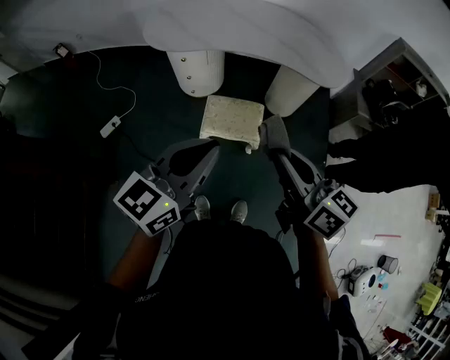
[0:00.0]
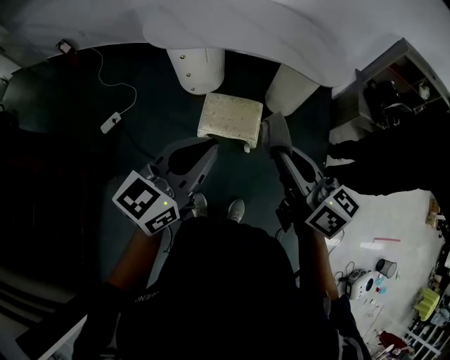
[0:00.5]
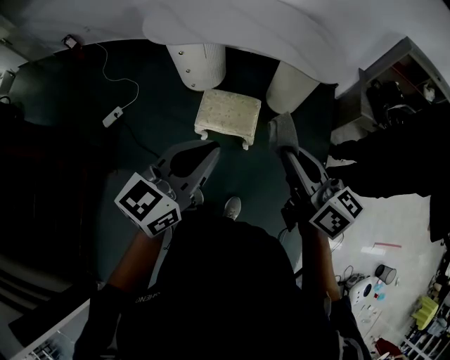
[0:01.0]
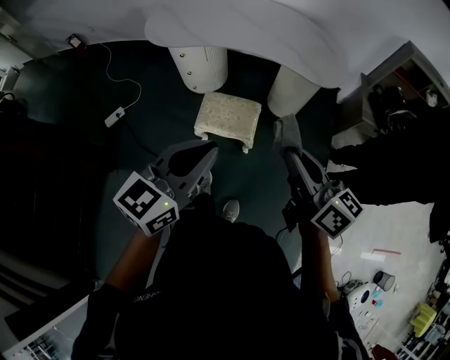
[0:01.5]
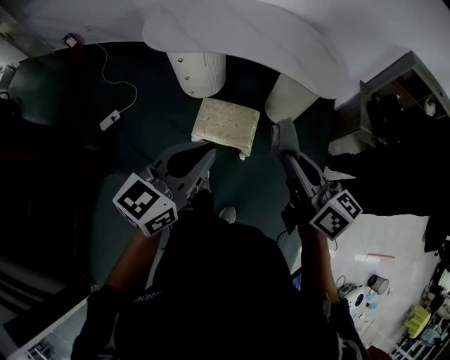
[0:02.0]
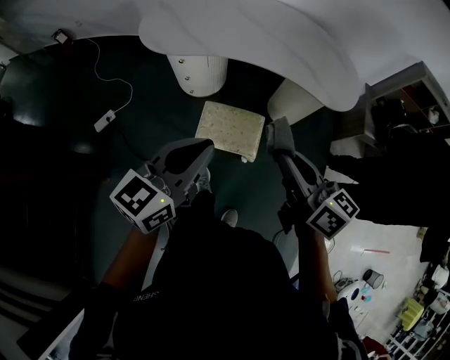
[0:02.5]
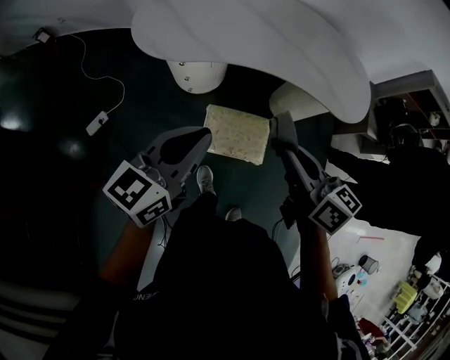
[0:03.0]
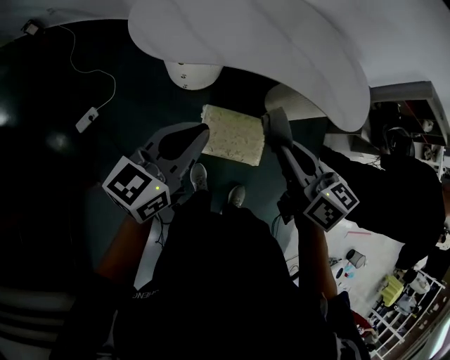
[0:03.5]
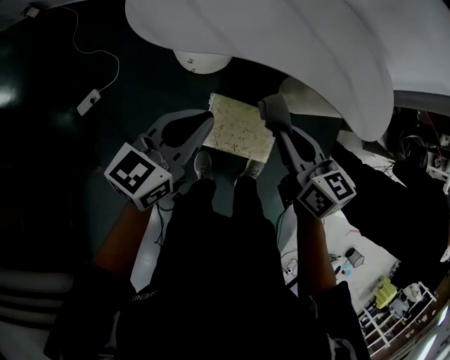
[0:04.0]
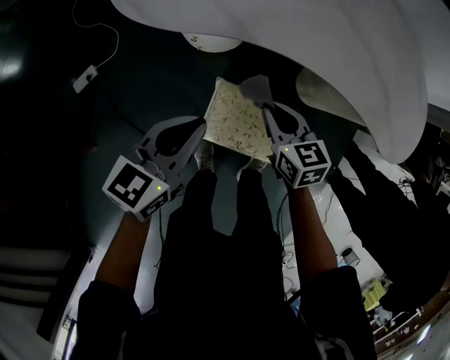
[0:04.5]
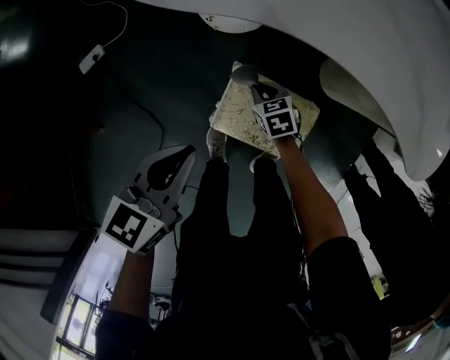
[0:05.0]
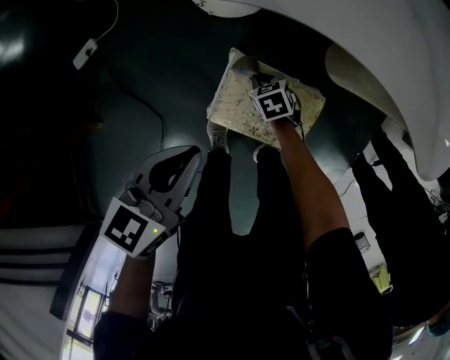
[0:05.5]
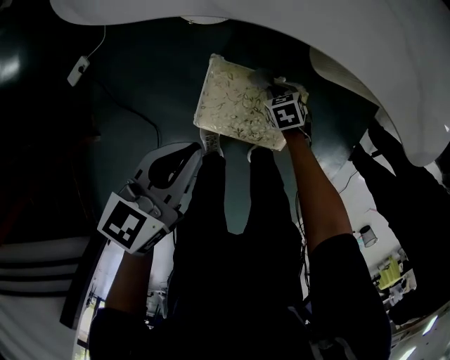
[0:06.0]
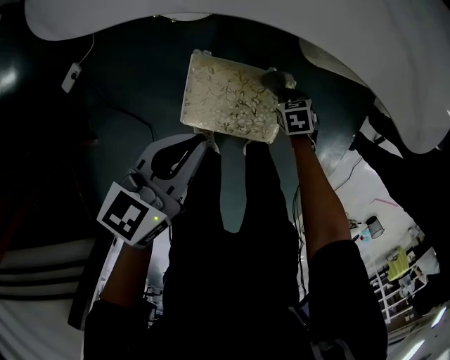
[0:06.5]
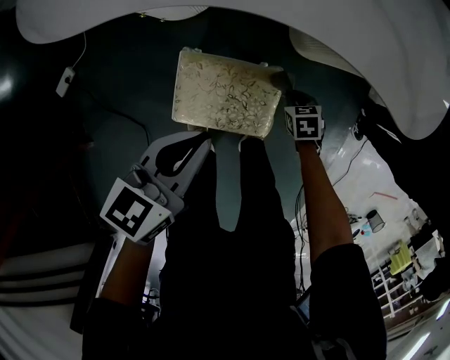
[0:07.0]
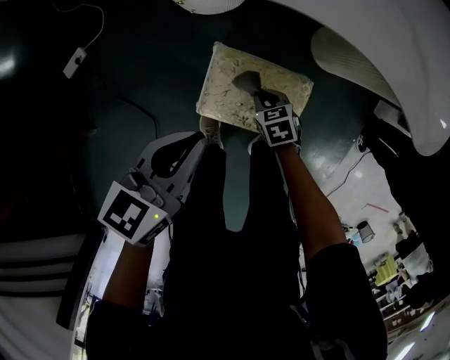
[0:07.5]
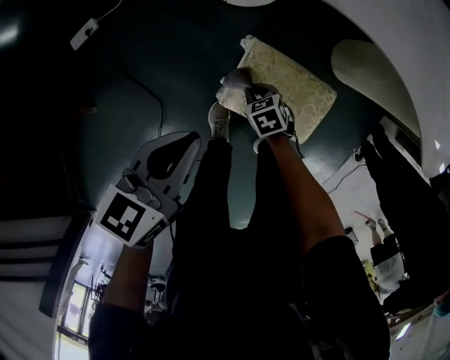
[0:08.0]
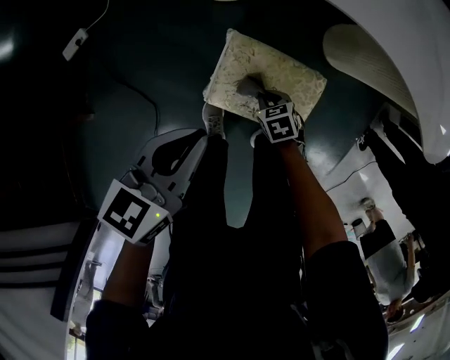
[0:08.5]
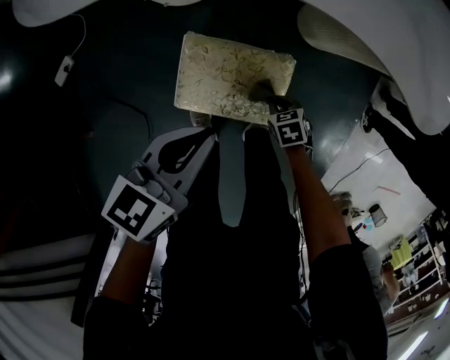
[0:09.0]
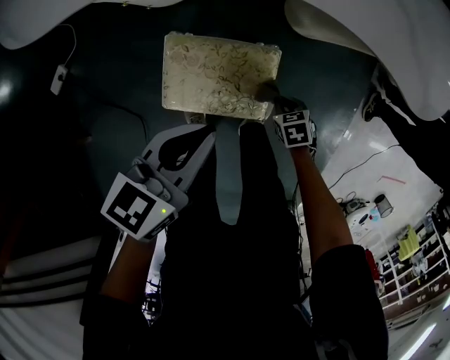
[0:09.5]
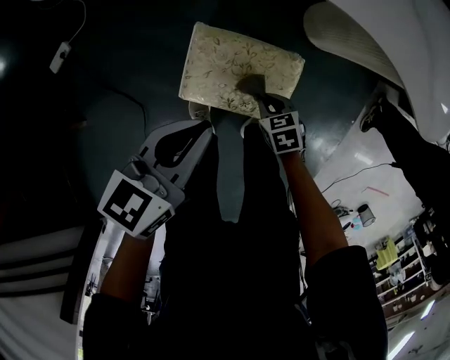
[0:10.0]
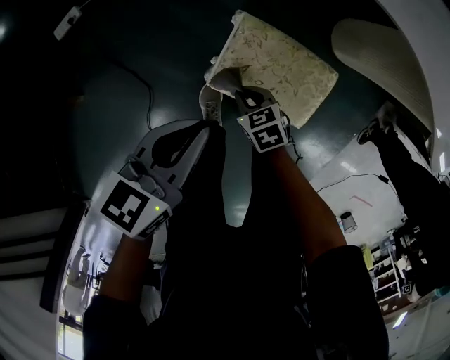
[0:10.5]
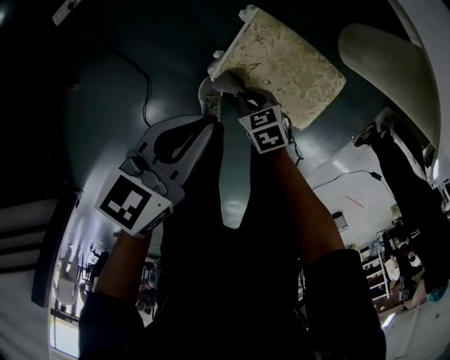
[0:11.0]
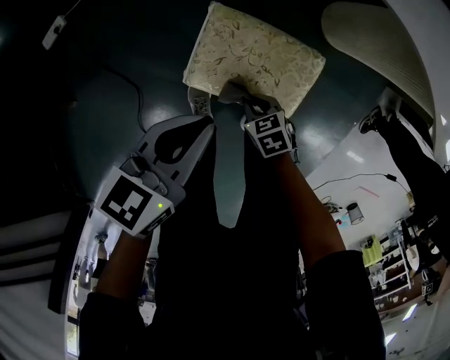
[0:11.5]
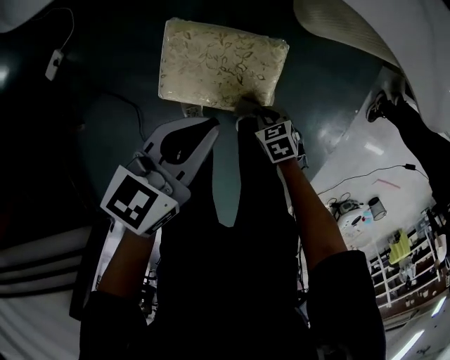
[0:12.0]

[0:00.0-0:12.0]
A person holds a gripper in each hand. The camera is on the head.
0:00.0 to 0:02.0: The two grippers go some 10 cm to the right.
0:02.0 to 0:04.0: The grippers both shift forward, to the left and downward by approximately 40 cm. The right gripper turns by some 20 degrees.
0:04.0 to 0:06.0: The left gripper moves downward, about 20 cm, and rotates about 20 degrees; the right gripper shifts roughly 50 cm downward, and tilts its fingers about 50 degrees downward.
0:06.0 to 0:08.0: The right gripper shifts by some 20 cm, while the left gripper shifts by some 15 cm.
0:08.0 to 0:10.0: Both grippers travel together to the right, some 15 cm.
0:10.0 to 0:12.0: The left gripper shifts by roughly 10 cm.

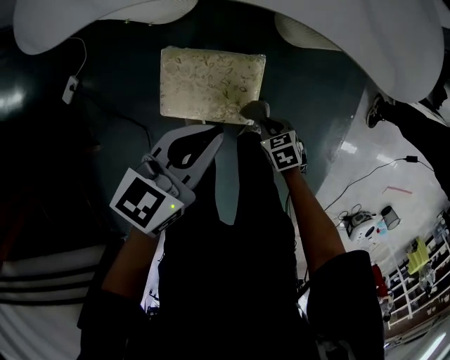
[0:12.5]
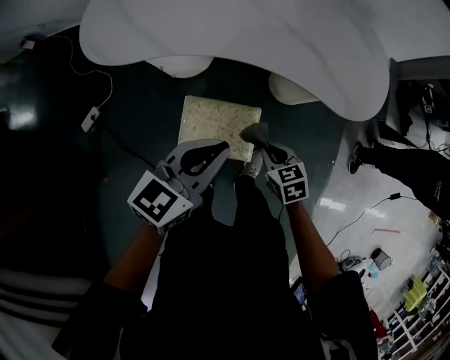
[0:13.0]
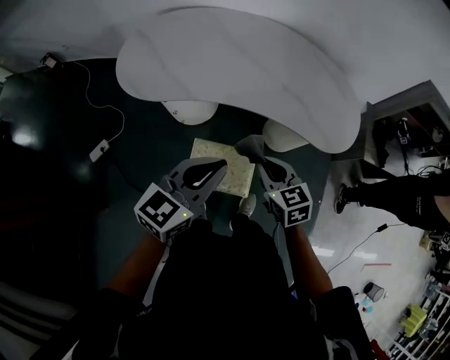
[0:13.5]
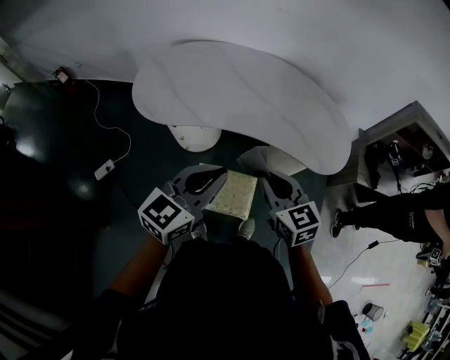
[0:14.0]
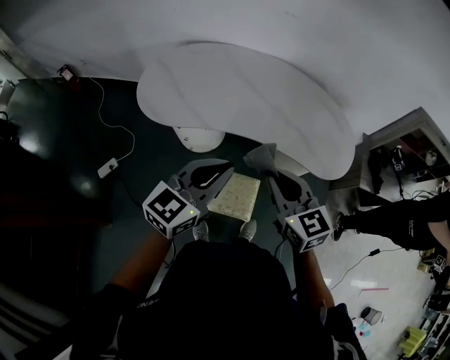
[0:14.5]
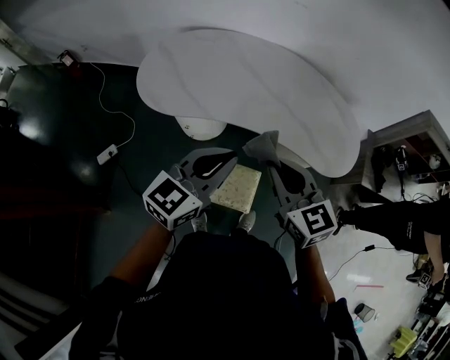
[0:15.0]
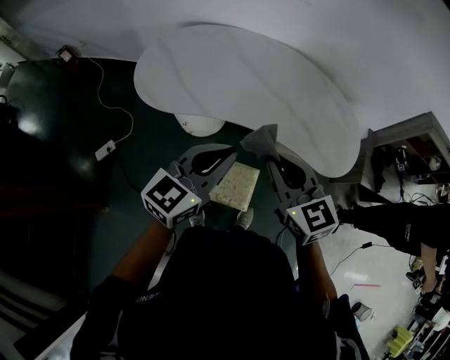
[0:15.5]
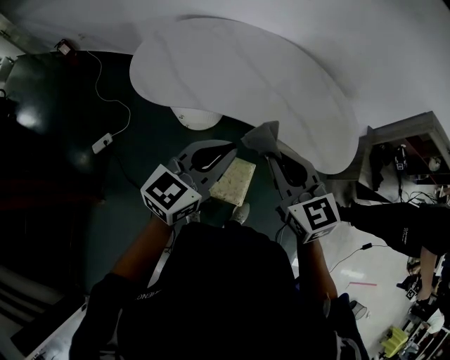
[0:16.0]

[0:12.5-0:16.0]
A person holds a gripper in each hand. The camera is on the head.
0:12.5 to 0:14.5: The right gripper moves upward, approximately 60 cm, and tips its fingers upward by roughly 50 degrees. The left gripper is displaced upward by roughly 30 cm, and changes its angle by roughly 30 degrees.
0:14.5 to 0:16.0: There are only small adjustments of the grippers.

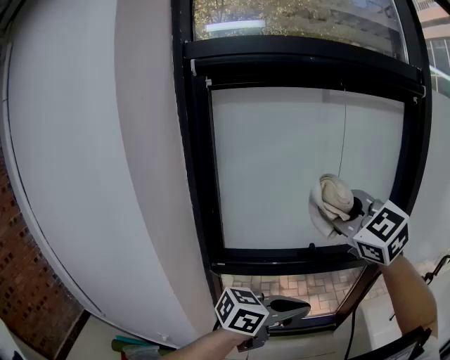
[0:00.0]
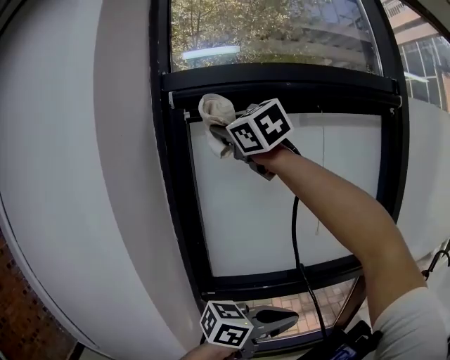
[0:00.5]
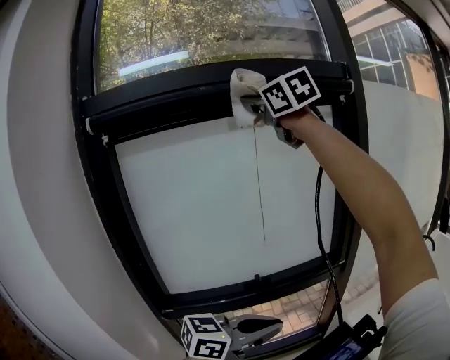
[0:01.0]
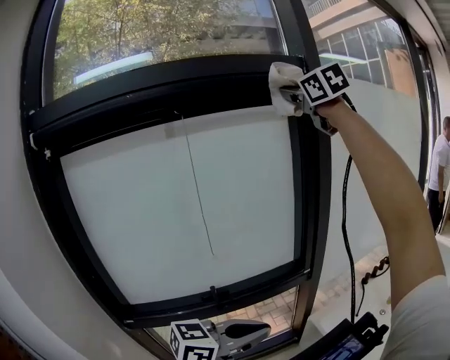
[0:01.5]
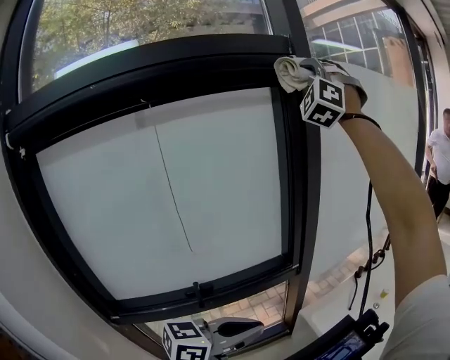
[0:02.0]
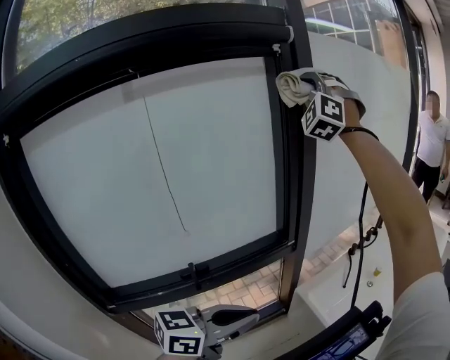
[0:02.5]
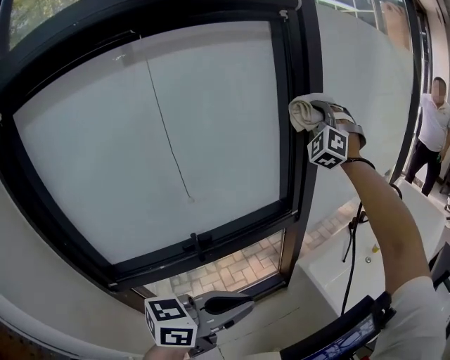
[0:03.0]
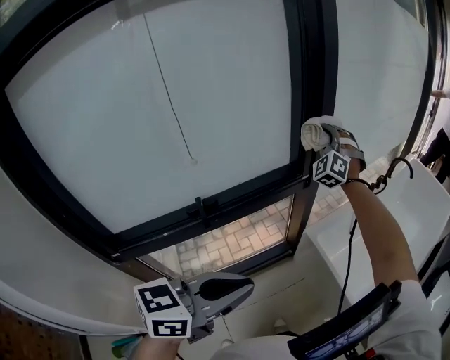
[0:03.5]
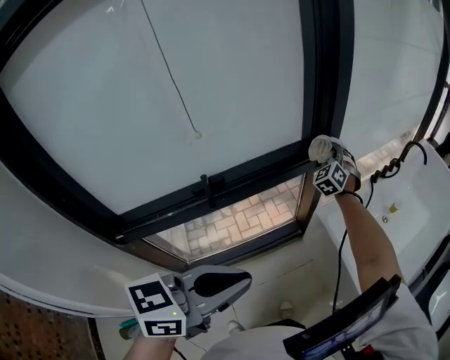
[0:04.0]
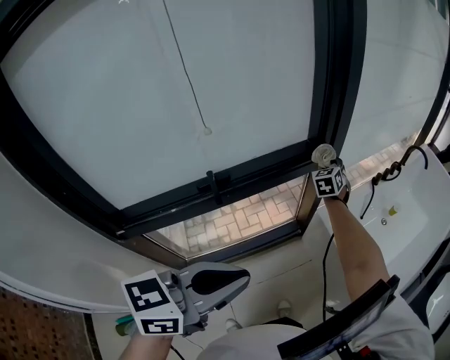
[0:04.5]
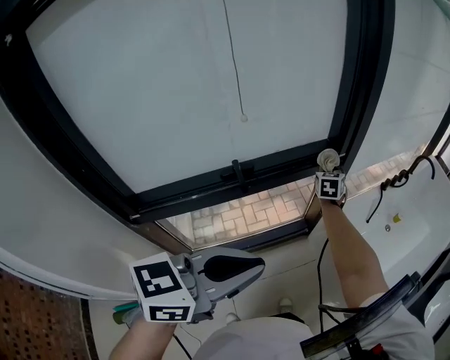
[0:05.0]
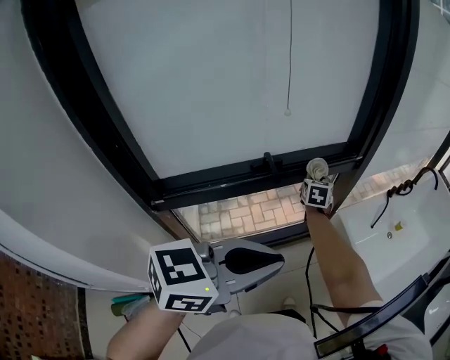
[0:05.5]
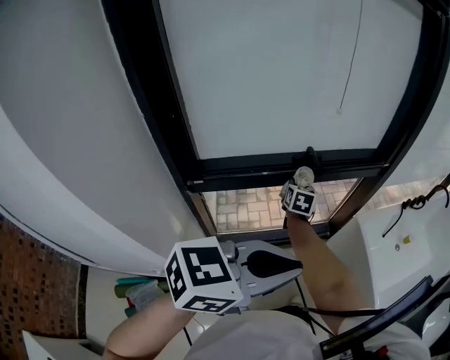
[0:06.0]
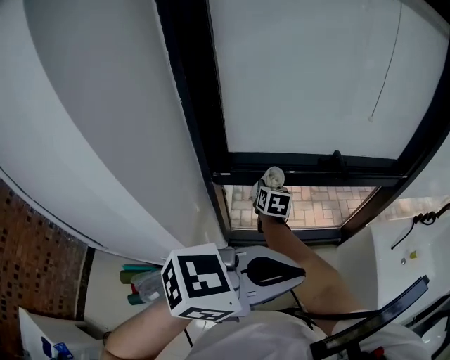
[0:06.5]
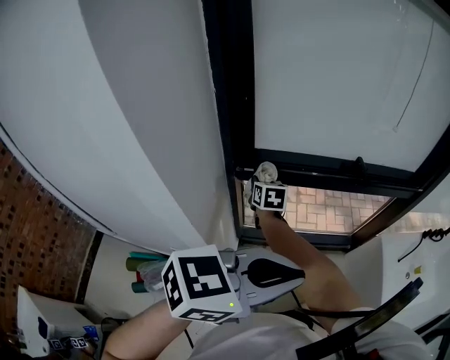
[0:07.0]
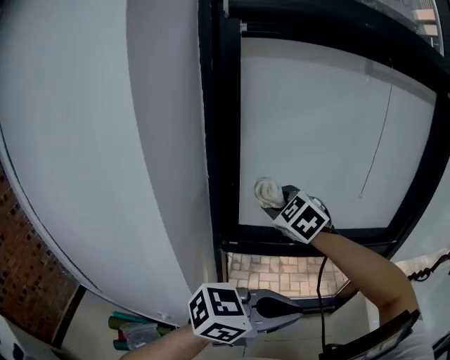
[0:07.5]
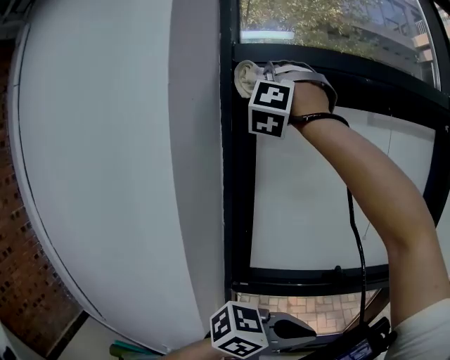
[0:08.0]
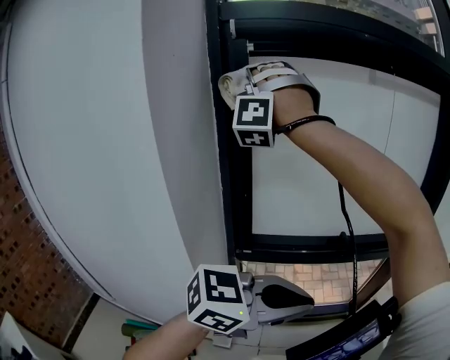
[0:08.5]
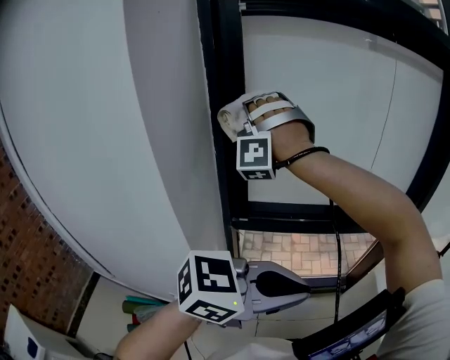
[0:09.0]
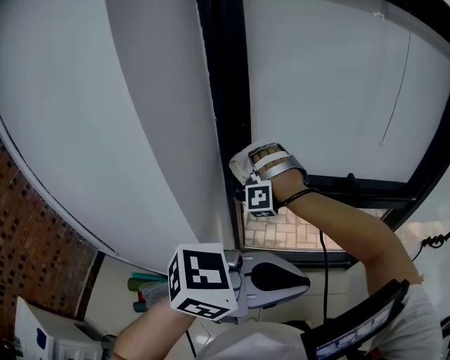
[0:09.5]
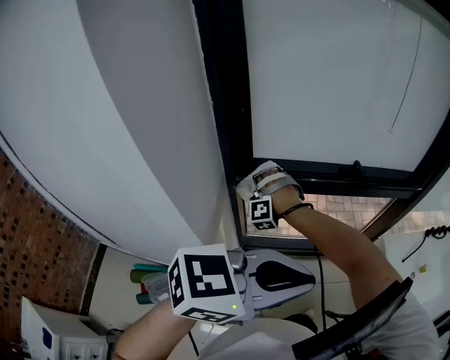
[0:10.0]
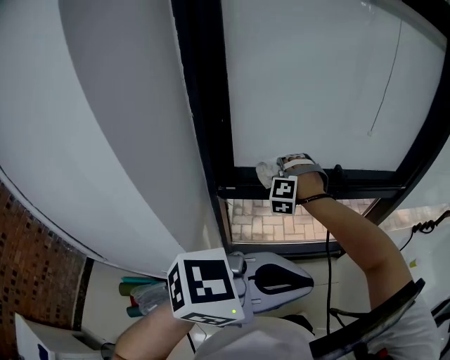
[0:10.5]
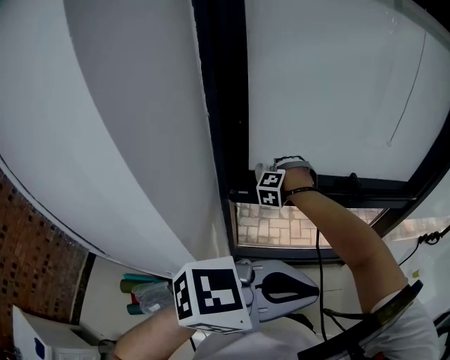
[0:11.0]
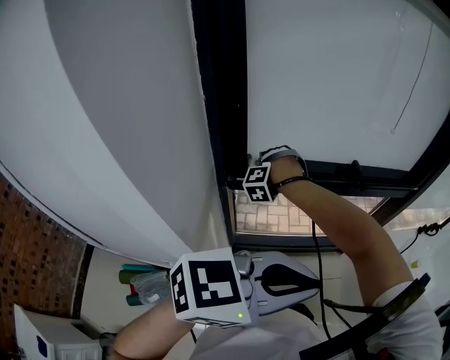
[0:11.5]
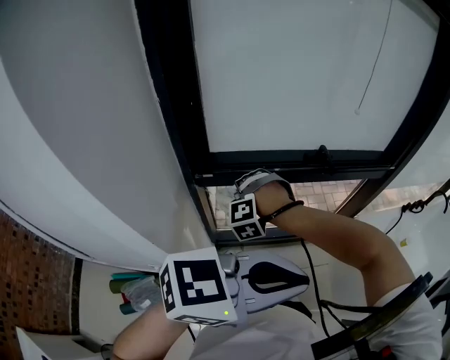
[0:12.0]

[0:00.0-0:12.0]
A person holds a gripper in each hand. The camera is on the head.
0:00.0 to 0:02.0: The left gripper shifts by some 20 cm. The right gripper ends up some 60 cm from where it was, and changes its angle by roughly 80 degrees.
0:02.0 to 0:04.0: The left gripper moves backward, approximately 10 cm. Meanwhile the right gripper is displaced downward by approximately 70 cm, and tips its fingers downward by some 40 degrees.
0:04.0 to 0:06.0: The right gripper goes about 40 cm backward and to the left, and twists about 50 degrees clockwise, seen from behind; the left gripper shifts approximately 20 cm backward and to the left.
0:06.0 to 0:08.0: The right gripper travels upward by some 80 cm, and rotates around the line of its fingers by some 100 degrees, counterclockwise from behind.
0:08.0 to 0:10.0: The right gripper is displaced downward by roughly 70 cm, and tilts its fingers roughly 50 degrees downward.
0:10.0 to 0:12.0: The right gripper heads to the right, covering some 10 cm, reaches some 10 cm forward, then returns, and turns by approximately 20 degrees.
